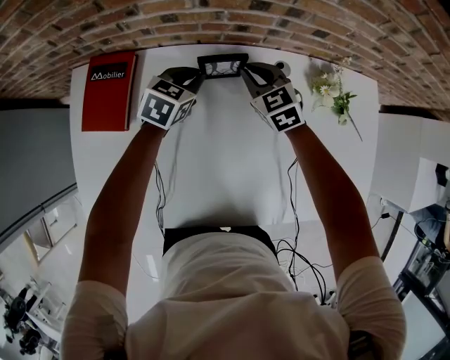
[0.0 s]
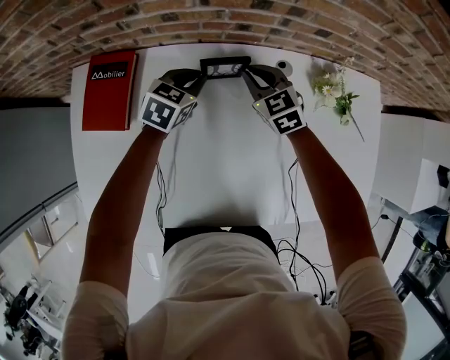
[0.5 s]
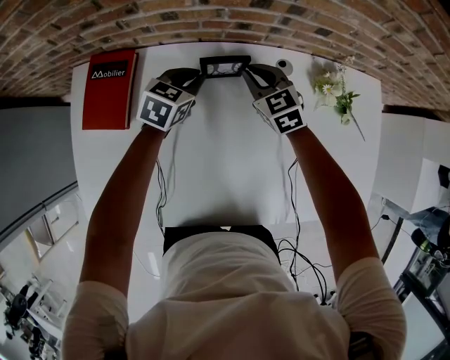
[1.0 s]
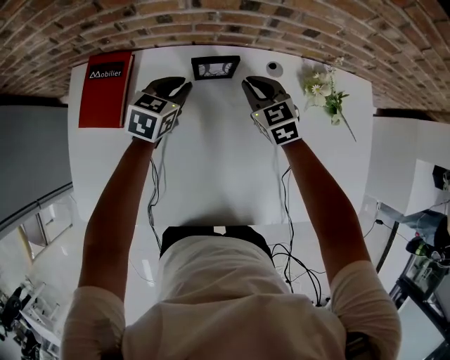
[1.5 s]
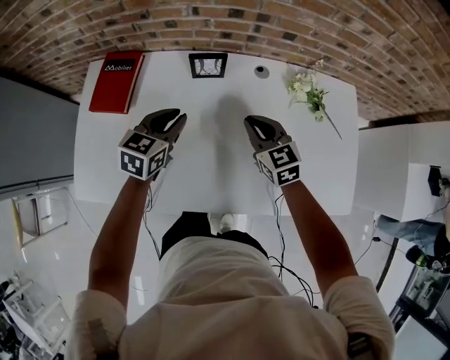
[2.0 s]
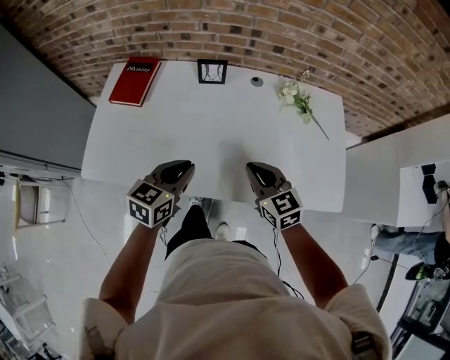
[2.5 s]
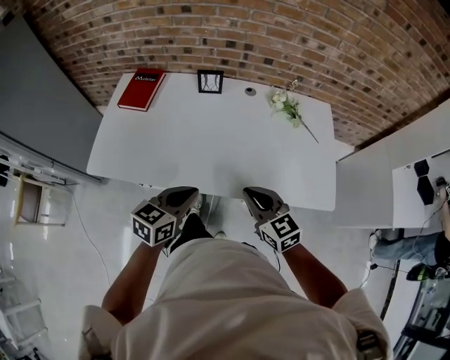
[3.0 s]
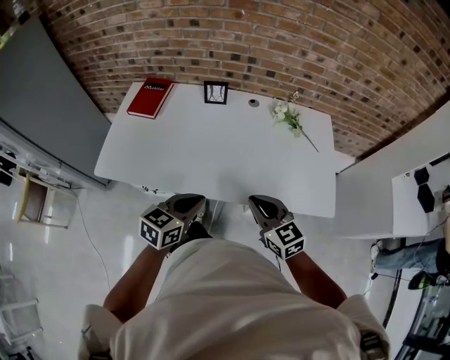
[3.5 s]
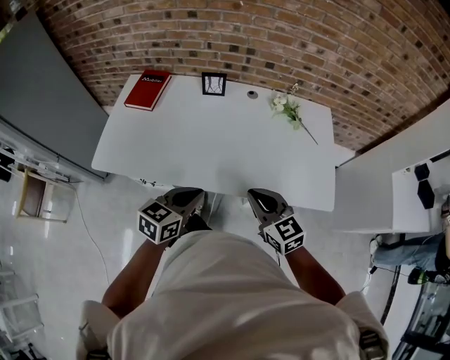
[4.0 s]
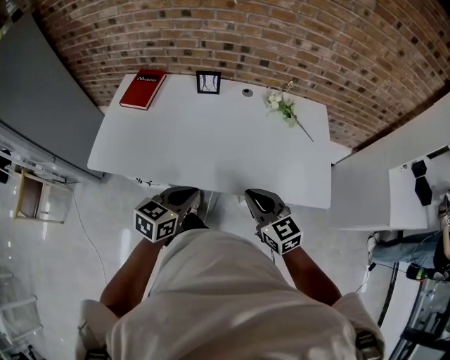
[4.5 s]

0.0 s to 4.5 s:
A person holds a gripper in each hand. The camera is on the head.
0.0 to 2.0 s: The left gripper shifts approximately 20 cm backward and upward. The right gripper travels backward and to the right by roughly 20 cm.
2.0 to 4.5 s: Both grippers travel together backward, some 35 cm.

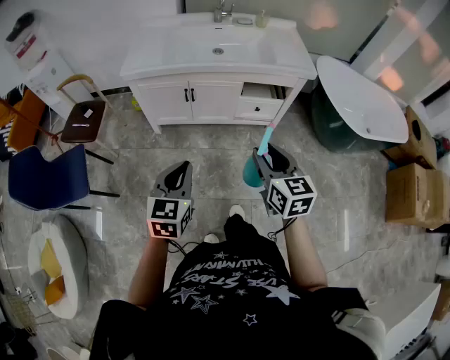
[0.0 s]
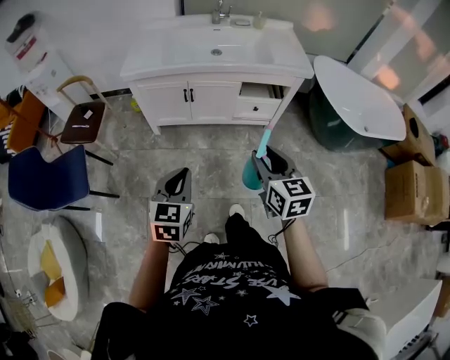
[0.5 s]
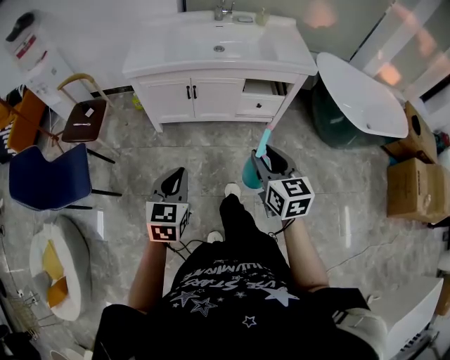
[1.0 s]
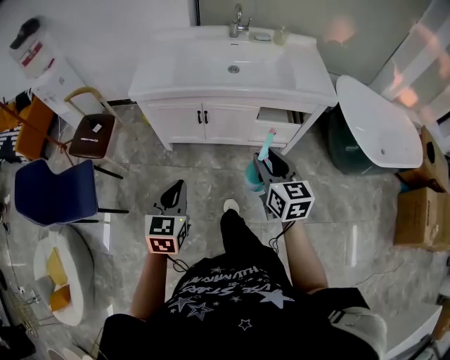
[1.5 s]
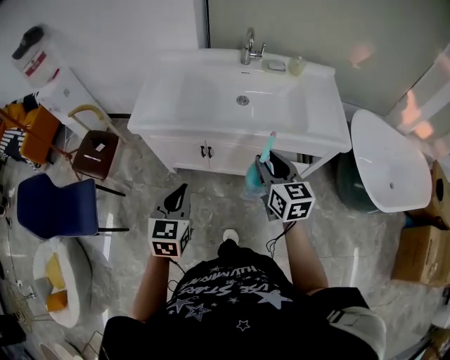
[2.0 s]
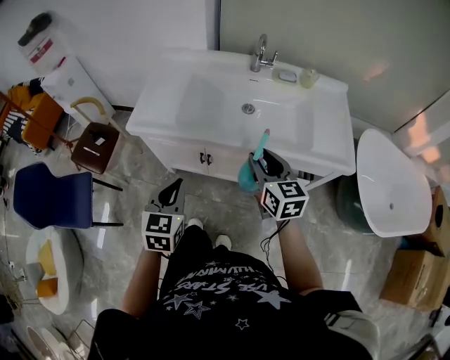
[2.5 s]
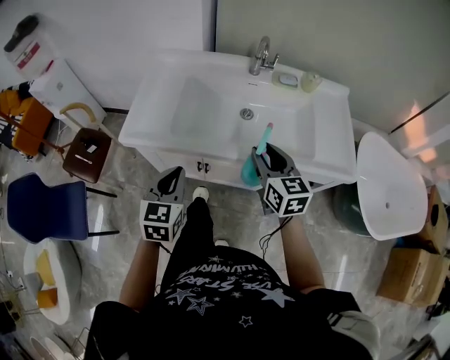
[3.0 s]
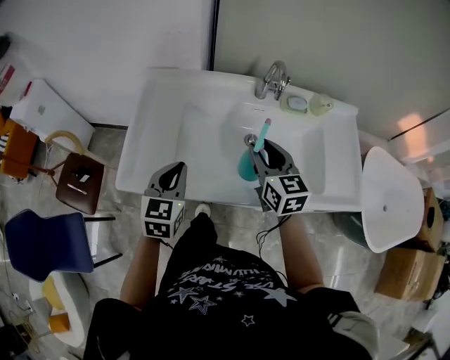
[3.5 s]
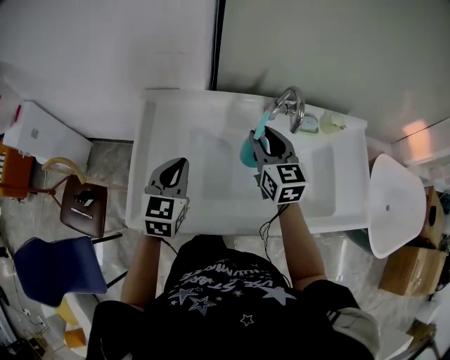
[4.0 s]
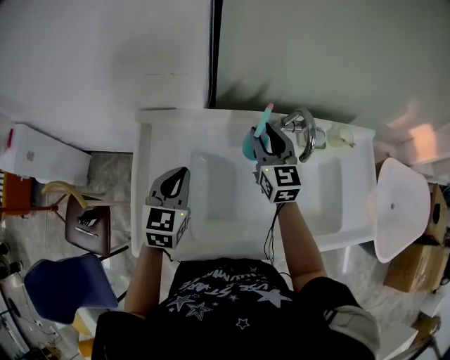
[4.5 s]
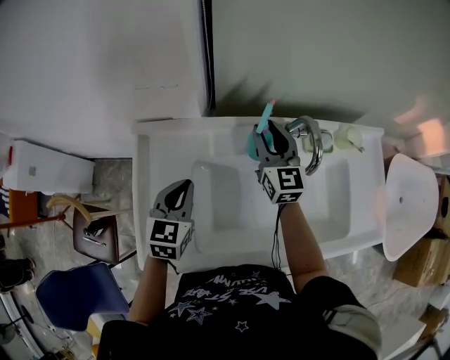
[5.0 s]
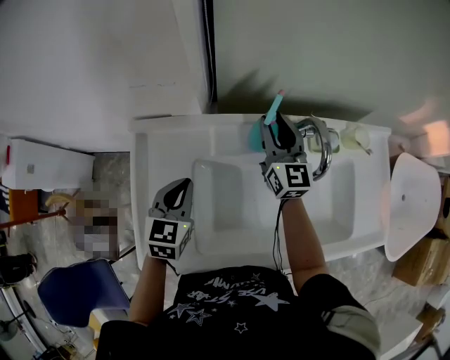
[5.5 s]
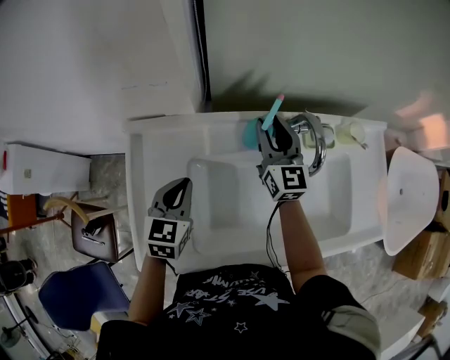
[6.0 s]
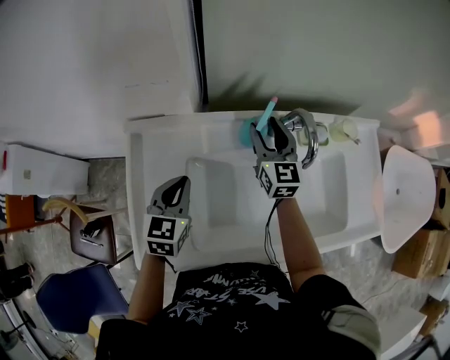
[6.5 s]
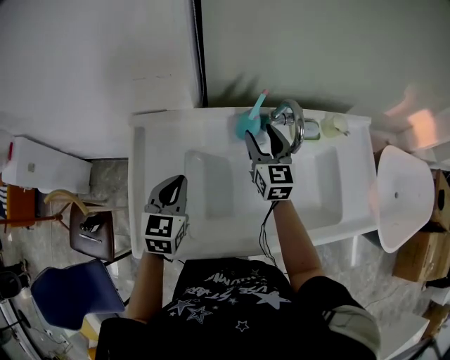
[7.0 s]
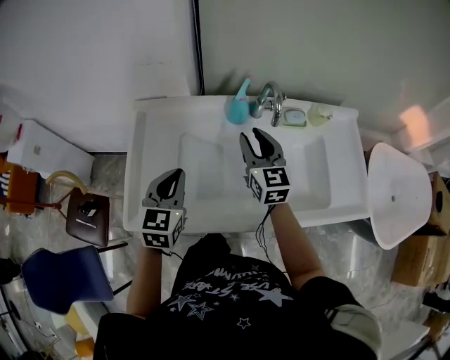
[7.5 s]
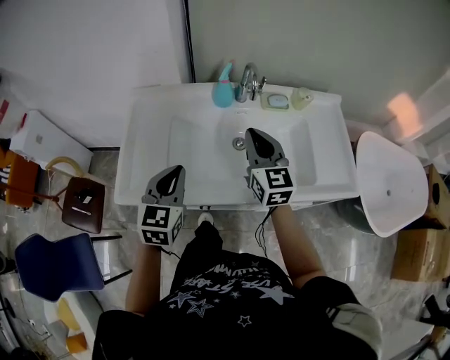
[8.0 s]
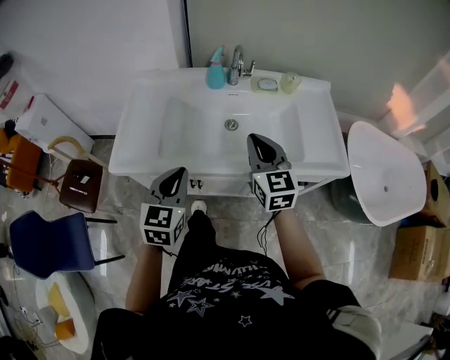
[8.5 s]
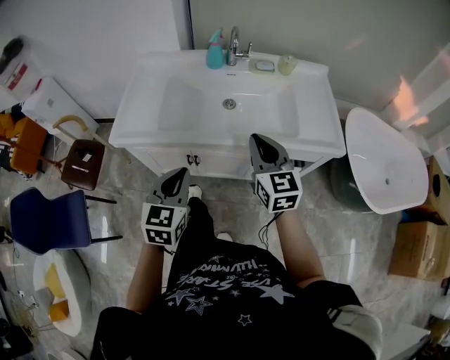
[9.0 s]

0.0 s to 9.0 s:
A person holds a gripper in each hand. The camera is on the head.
0.0 to 2.0 s: The grippers both shift forward by some 30 cm.
2.0 to 4.5 s: The pair of grippers is taken forward, roughly 60 cm.
4.5 to 7.0 s: The right gripper reaches about 5 cm forward, then returns, and opens its fingers.
7.0 to 9.0 s: The two grippers travel together, backward, roughly 40 cm. The right gripper closes up.

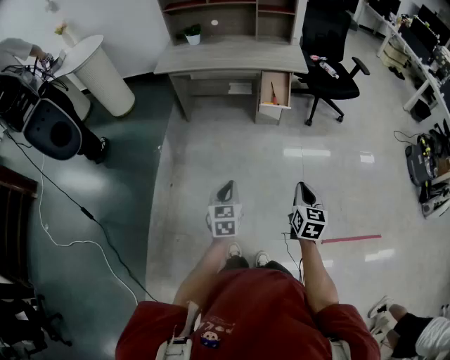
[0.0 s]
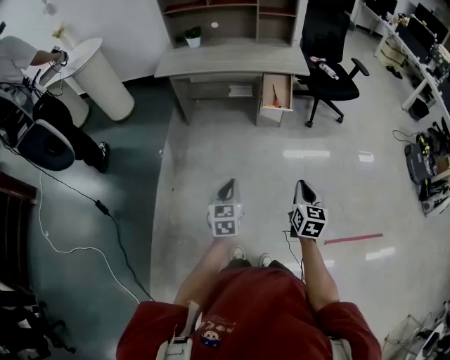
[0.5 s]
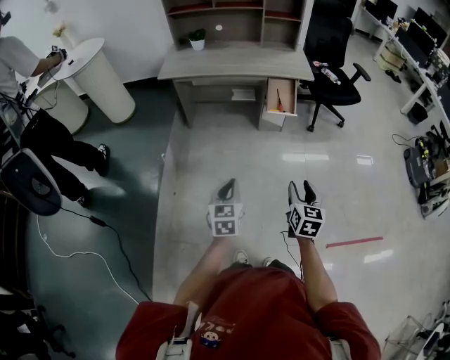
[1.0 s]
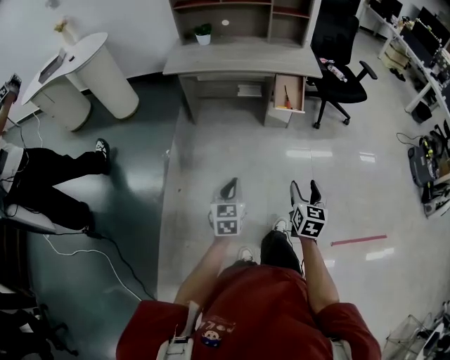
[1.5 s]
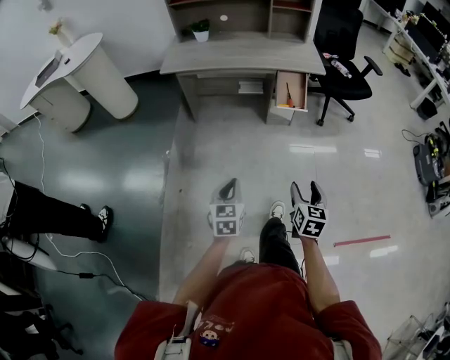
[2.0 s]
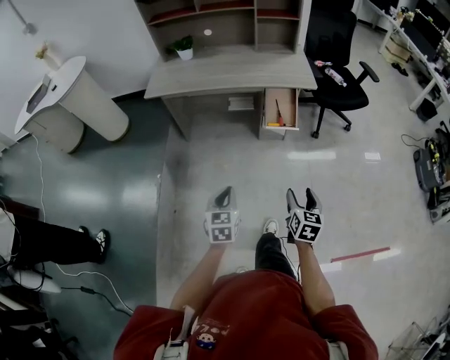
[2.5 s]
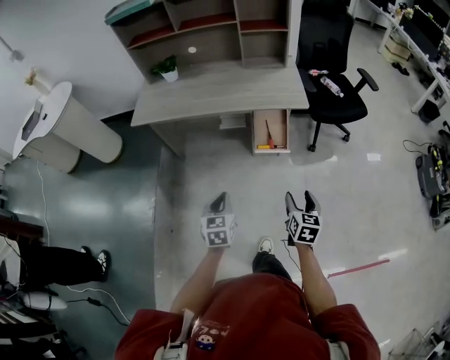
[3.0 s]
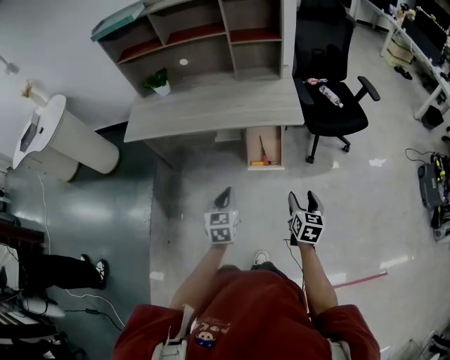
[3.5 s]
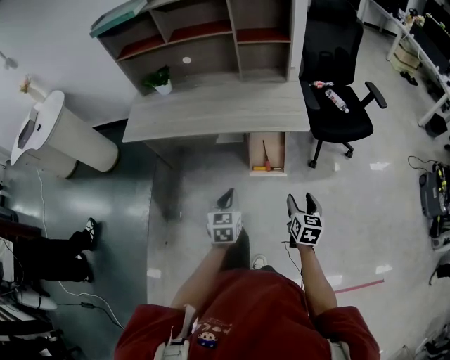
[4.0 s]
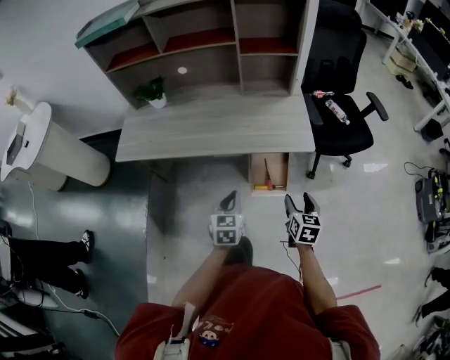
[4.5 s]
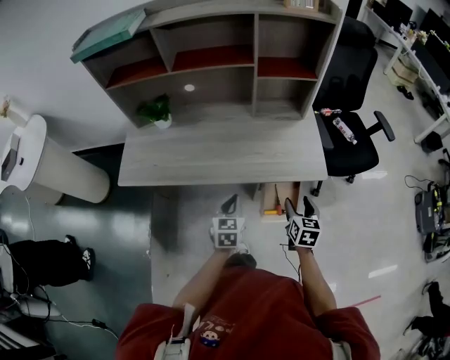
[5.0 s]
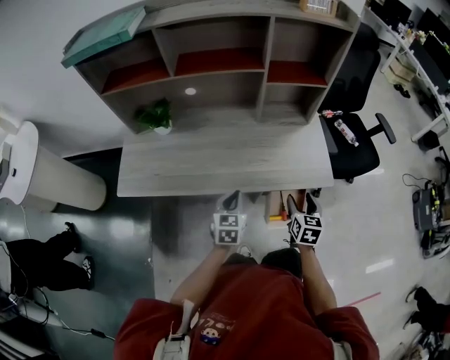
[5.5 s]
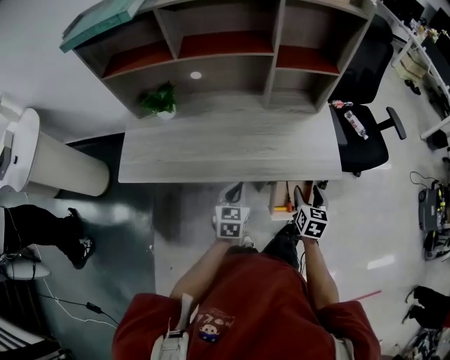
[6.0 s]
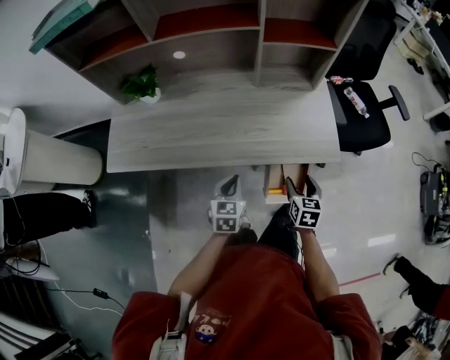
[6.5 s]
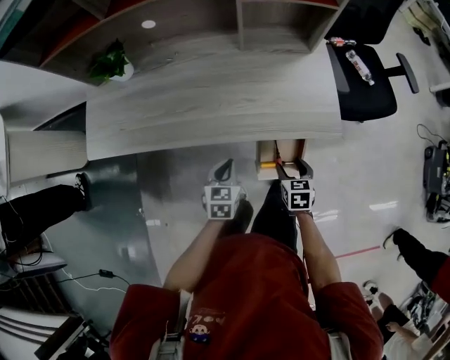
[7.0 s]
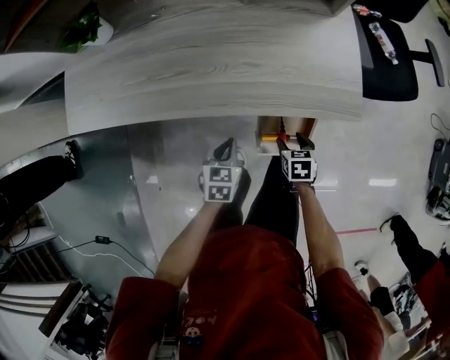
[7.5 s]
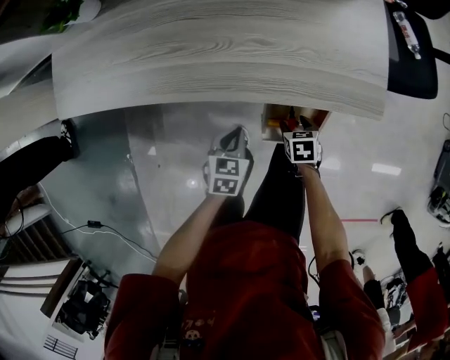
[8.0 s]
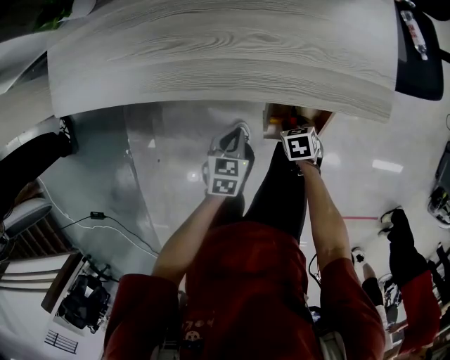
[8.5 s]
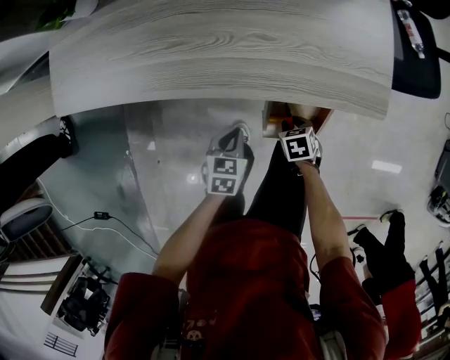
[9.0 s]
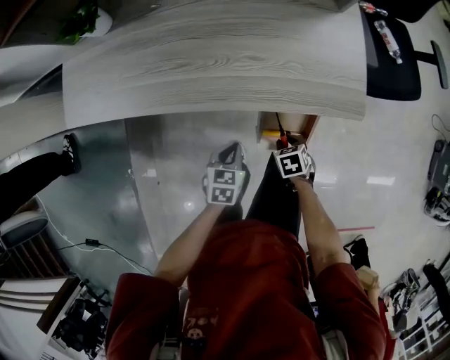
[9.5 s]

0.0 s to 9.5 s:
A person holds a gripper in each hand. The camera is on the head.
0.0 to 2.0 s: The two grippers go approximately 15 cm to the left and forward. The right gripper opens.
2.0 to 4.0 s: Both grippers are carried forward and to the right, about 50 cm.
4.0 to 5.5 s: The two grippers go some 35 cm forward and to the left.
5.5 to 7.5 s: Both grippers travel together downward, approximately 25 cm. The left gripper rotates approximately 20 degrees; the right gripper changes its angle by roughly 40 degrees.
7.5 to 9.5 s: The right gripper closes. Meanwhile the left gripper moves approximately 10 cm downward and comes back.

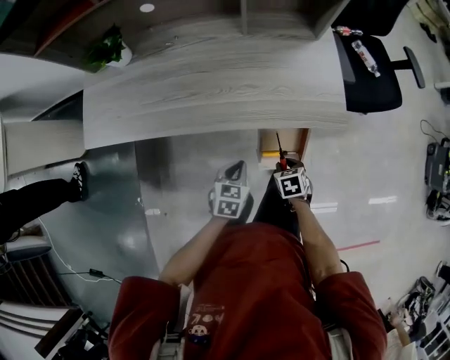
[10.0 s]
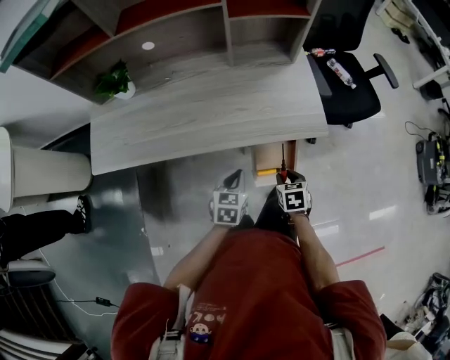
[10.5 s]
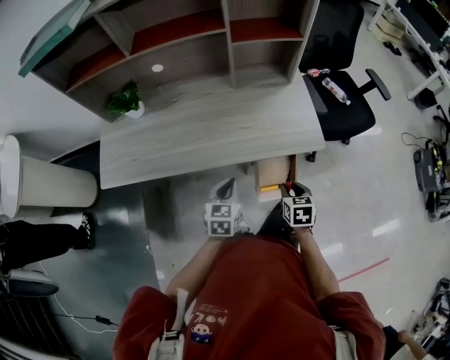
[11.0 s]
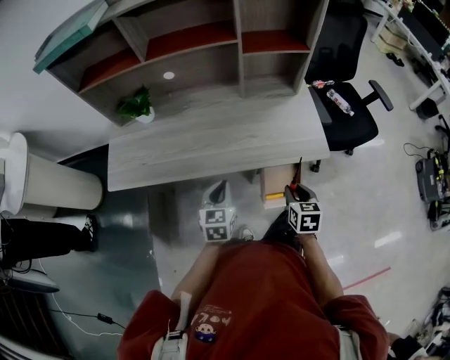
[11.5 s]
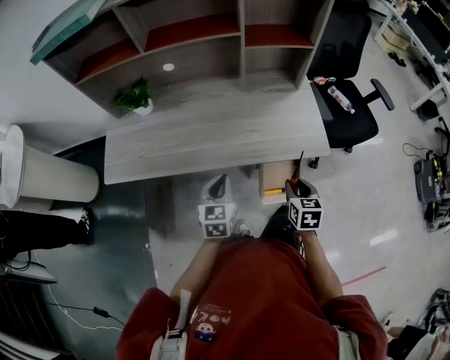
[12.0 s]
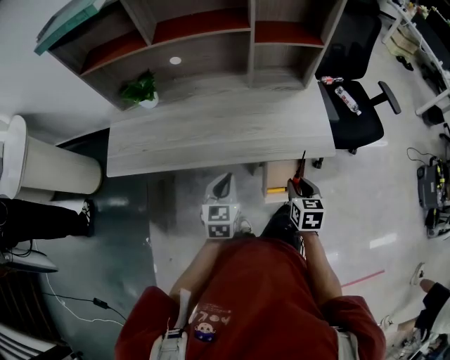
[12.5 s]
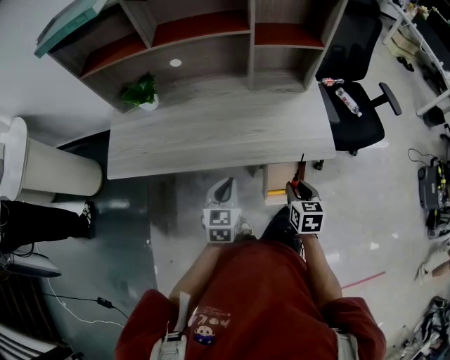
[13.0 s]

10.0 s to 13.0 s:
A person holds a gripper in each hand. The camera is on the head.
10.0 to 11.5 s: The left gripper goes about 20 cm upward and to the left, and swivels roughly 20 degrees, while the right gripper goes about 20 cm upward, and changes its angle by some 30 degrees.
11.5 to 13.0 s: The grippers stay close to where they were, moving slightly.
